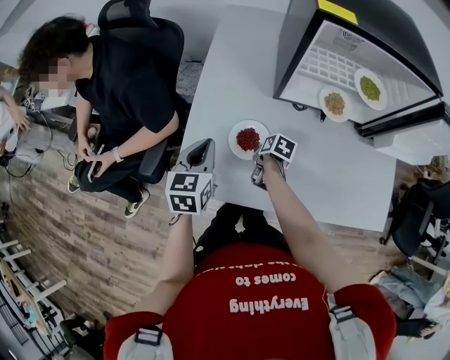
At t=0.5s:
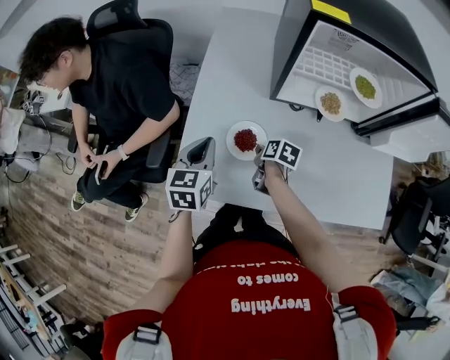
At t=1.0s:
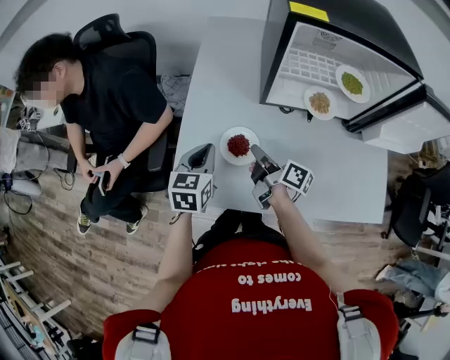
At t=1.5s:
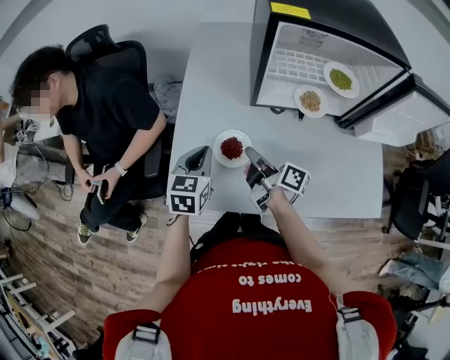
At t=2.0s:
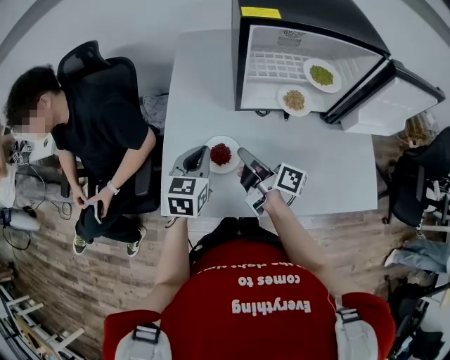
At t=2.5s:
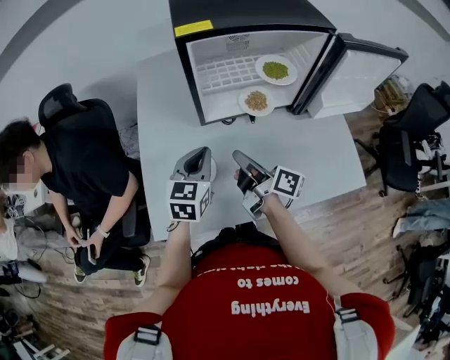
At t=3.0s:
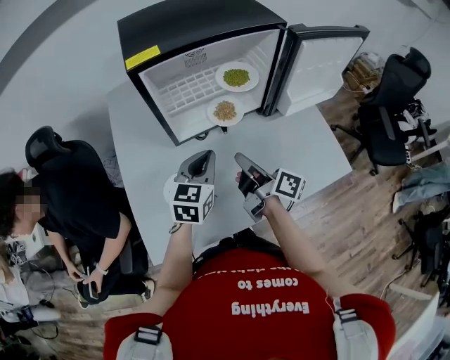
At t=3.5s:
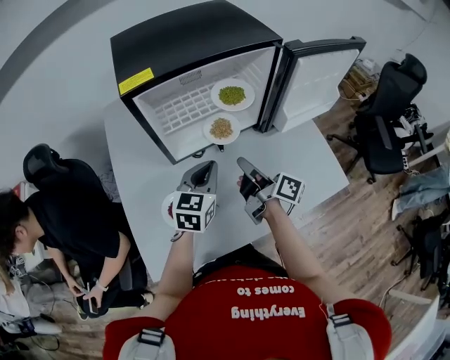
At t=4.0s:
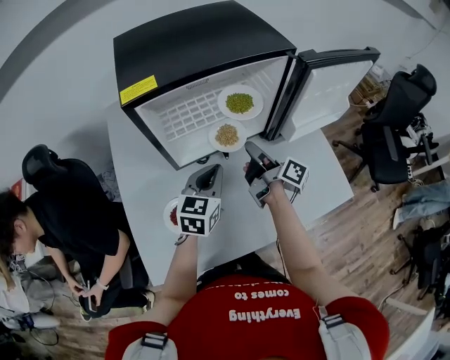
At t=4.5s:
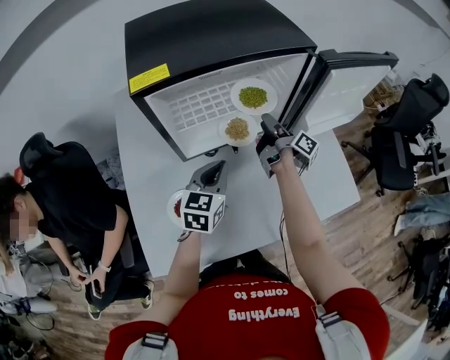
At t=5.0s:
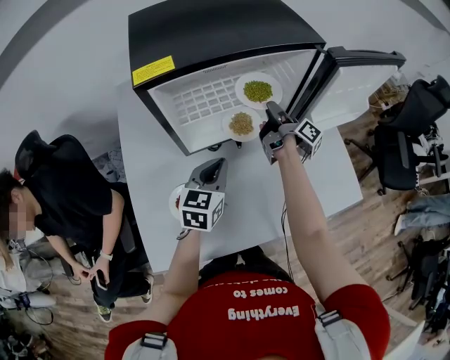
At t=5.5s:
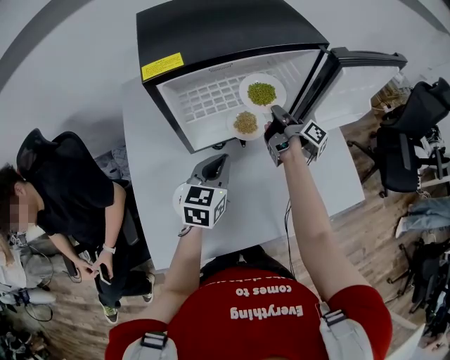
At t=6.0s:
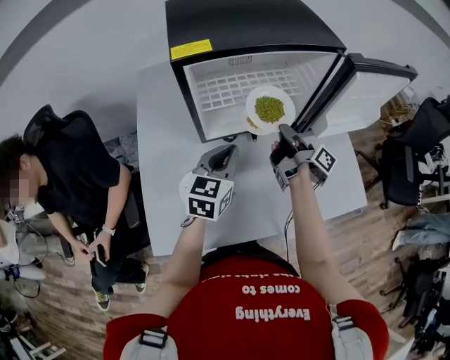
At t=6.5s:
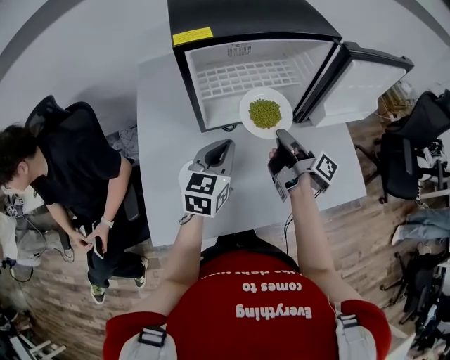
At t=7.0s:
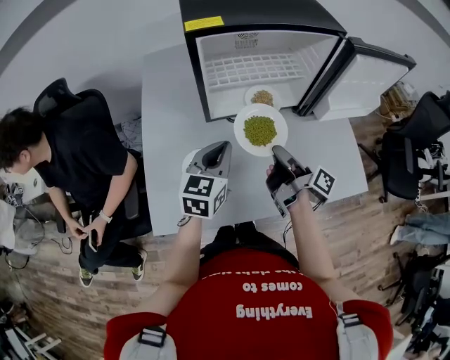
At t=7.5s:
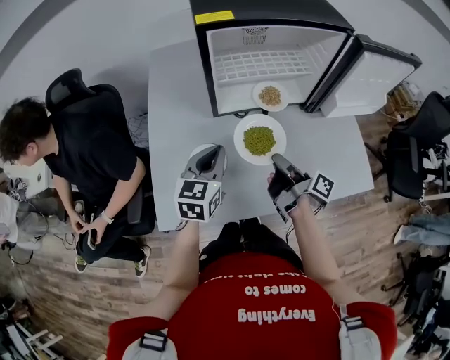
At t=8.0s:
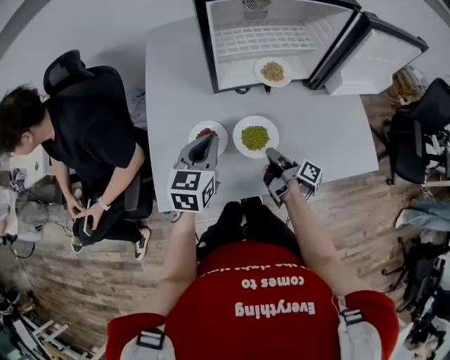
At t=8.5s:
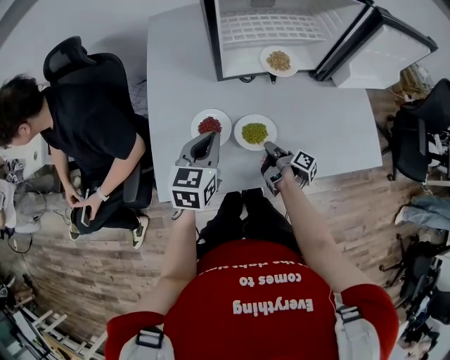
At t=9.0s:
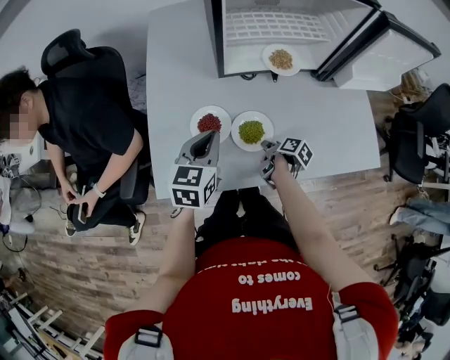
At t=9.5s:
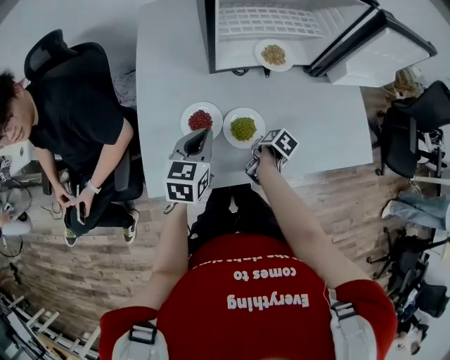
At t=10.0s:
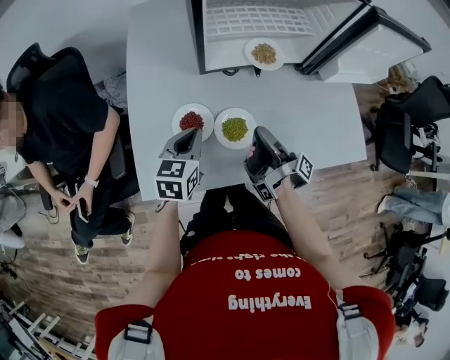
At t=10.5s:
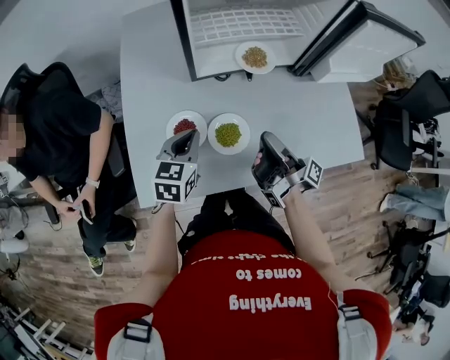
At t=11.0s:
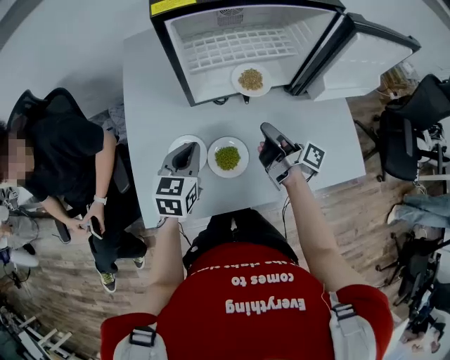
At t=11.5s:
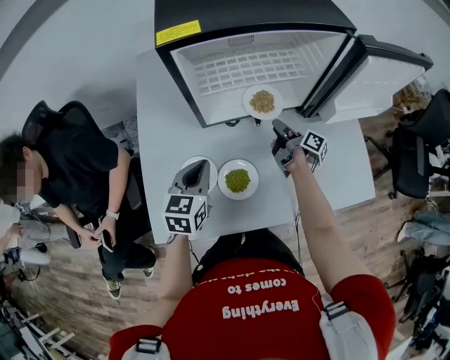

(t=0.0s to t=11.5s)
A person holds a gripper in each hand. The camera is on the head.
t=0.0s - t=2.0s: The left gripper changes place by roughly 10 cm.
t=2.0s - t=4.0s: The left gripper changes place by approximately 25 cm, and changes its angle by some 30 degrees.
t=4.0s - t=6.0s: The left gripper ends up about 5 cm from where it was.
t=6.0s - t=7.5s: The left gripper ends up about 10 cm from where it was.
t=7.5s - t=9.5s: The left gripper travels downward by approximately 10 cm.
t=9.5s - t=11.5s: The left gripper shifts by about 10 cm.

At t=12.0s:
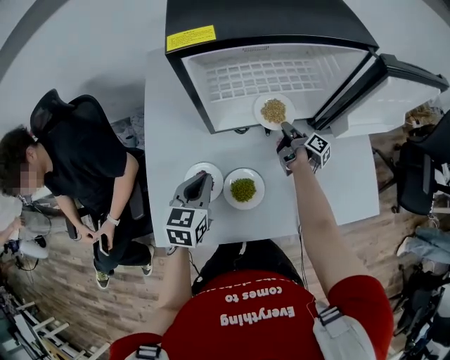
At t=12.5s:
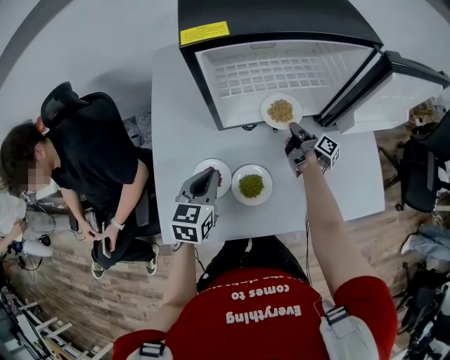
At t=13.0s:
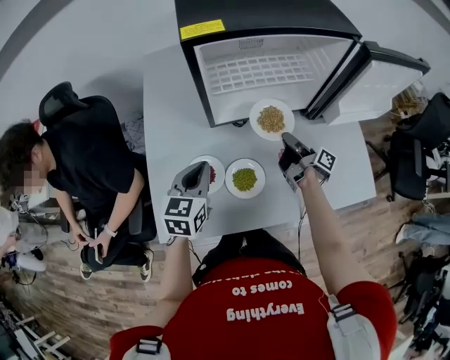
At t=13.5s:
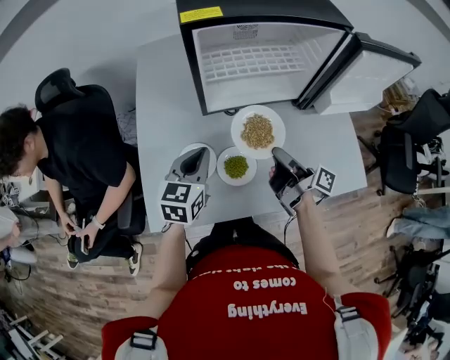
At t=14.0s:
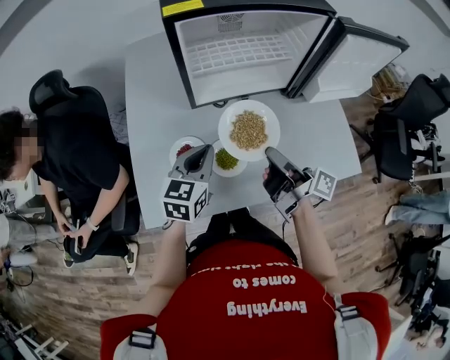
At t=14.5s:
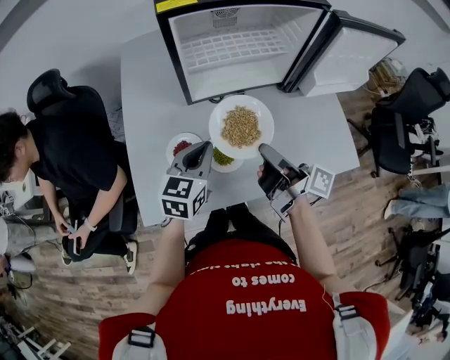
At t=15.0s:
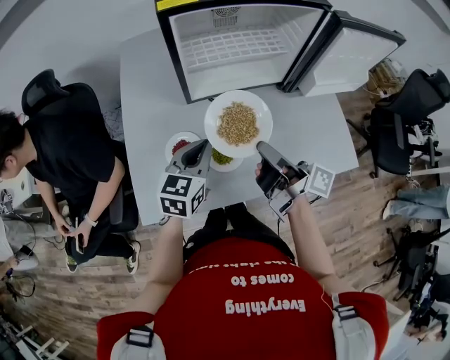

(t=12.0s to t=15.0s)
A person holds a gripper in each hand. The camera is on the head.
t=13.5s - t=15.0s: The left gripper ends up roughly 5 cm from where it was.

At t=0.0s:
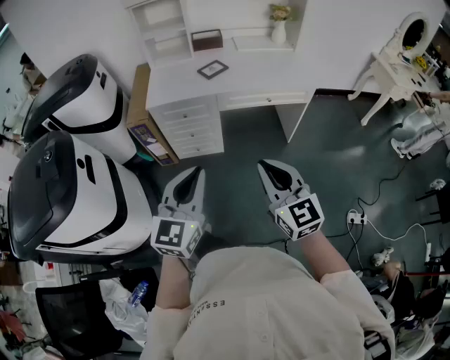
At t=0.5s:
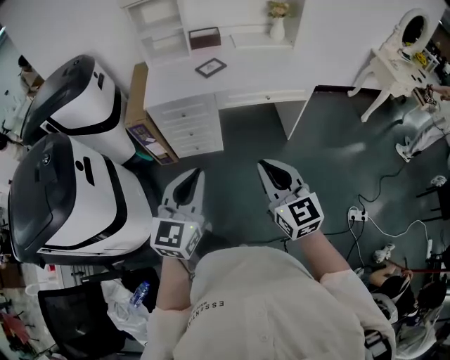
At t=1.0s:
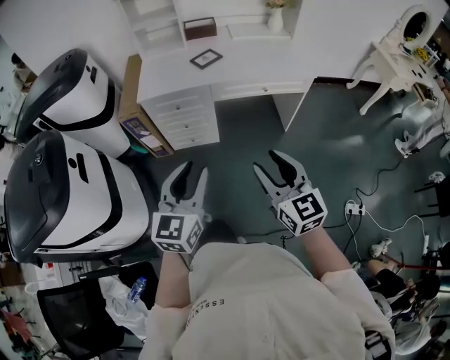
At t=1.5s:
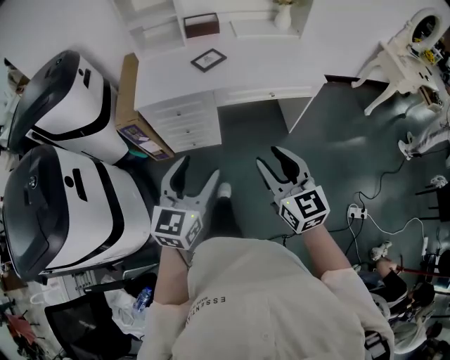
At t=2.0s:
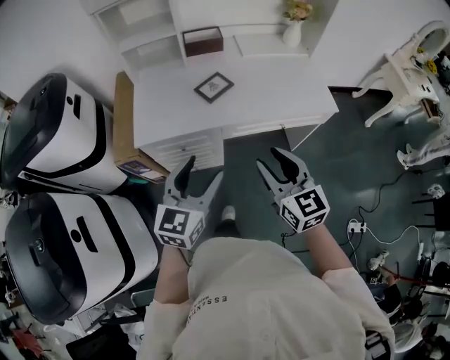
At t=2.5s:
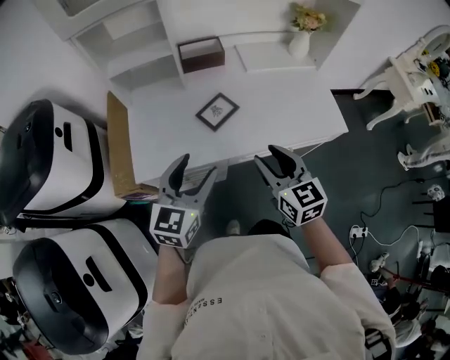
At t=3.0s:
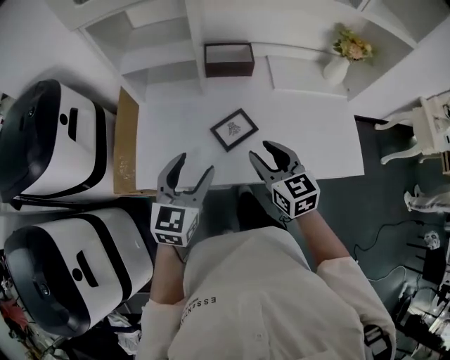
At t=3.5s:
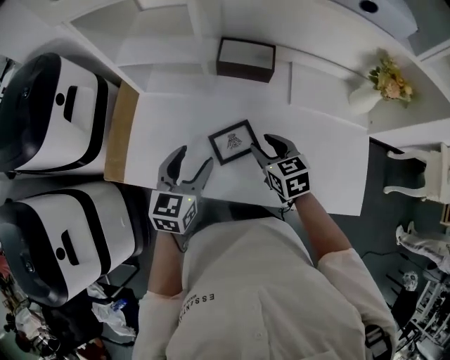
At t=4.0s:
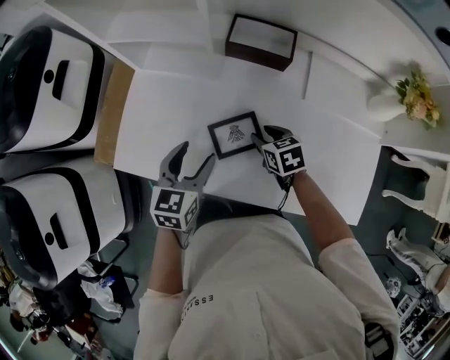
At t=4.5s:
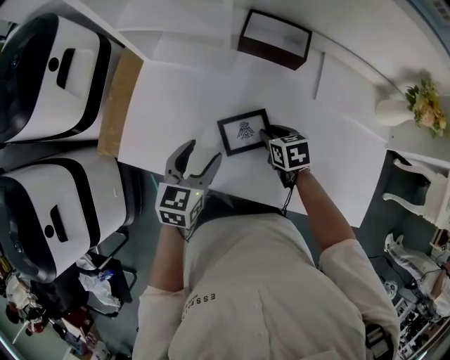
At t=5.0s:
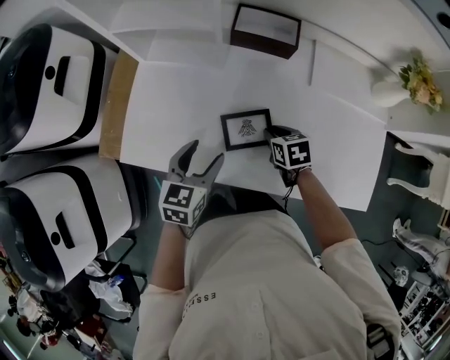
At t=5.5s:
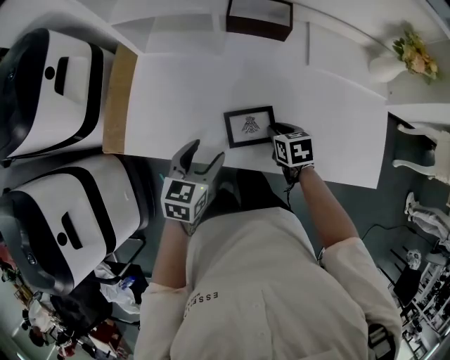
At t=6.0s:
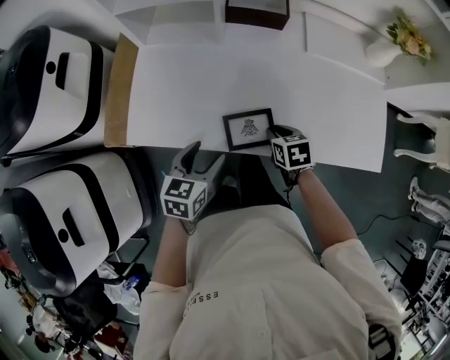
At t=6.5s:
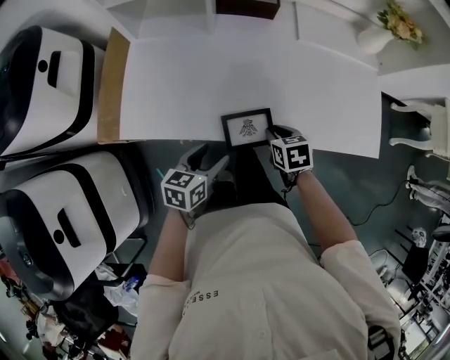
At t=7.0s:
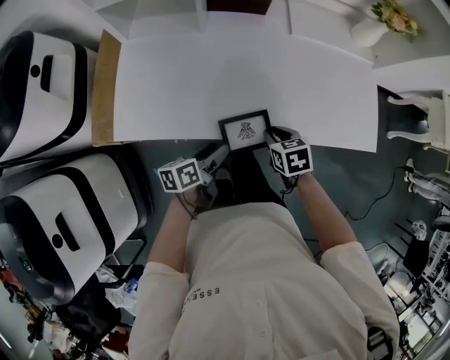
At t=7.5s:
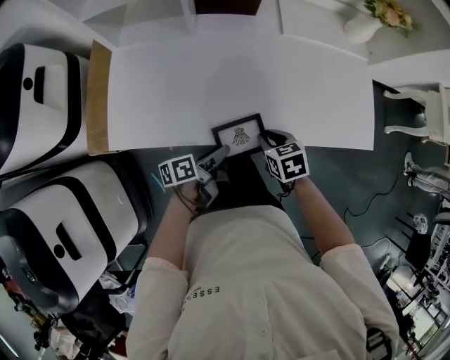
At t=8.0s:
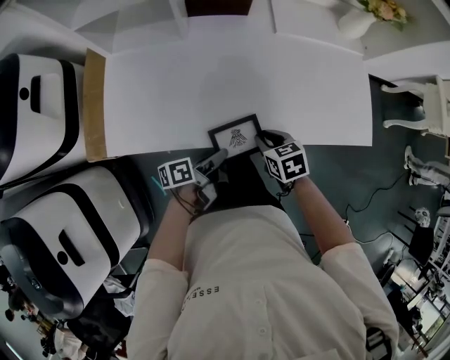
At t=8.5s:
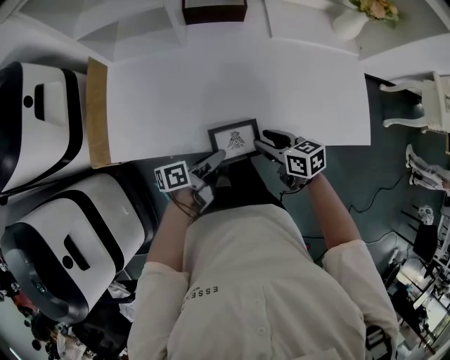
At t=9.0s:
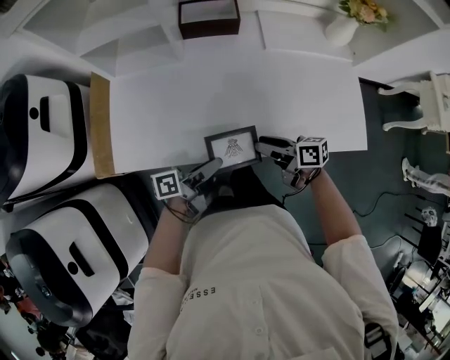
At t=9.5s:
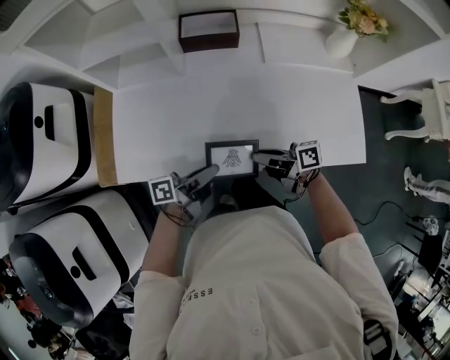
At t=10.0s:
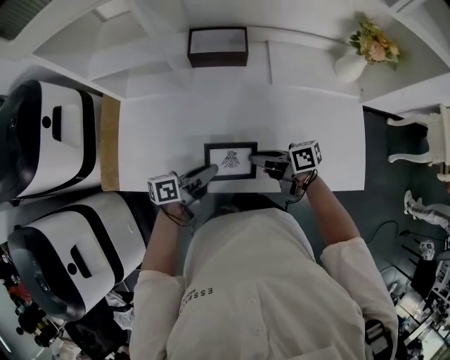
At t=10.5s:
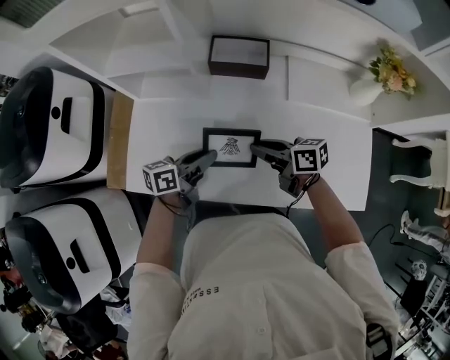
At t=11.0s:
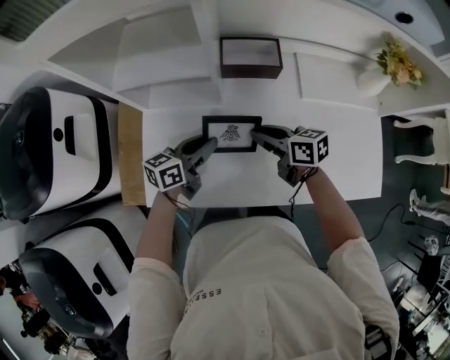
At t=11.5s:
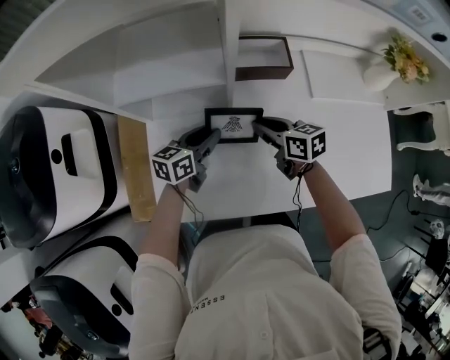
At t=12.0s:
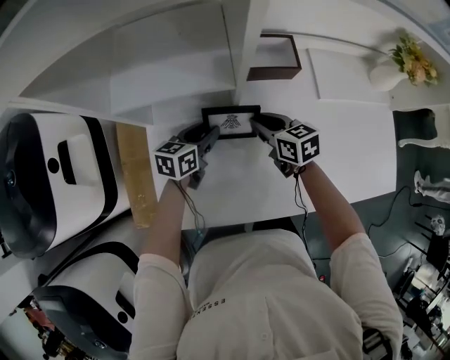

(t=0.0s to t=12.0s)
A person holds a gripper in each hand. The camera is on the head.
t=0.0s - t=2.0s: Both grippers move forward, about 30 cm. The right gripper opens its fingers. The left gripper opens up.
t=2.0s - t=4.0s: The right gripper moves about 50 cm, and angles its fingers downward, by roughly 40 degrees. Meanwhile the left gripper shifts by about 40 cm, and changes its angle by about 30 degrees.
t=4.0s - t=6.0s: Both grippers move backward, about 15 cm. The right gripper closes up.
t=6.0s - t=8.0s: The left gripper goes some 15 cm to the right and downward, rotates around the line of its fingers by approximately 50 degrees, counterclockwise from behind, and closes its fingers. Meanwhile the right gripper travels backward by about 5 cm.
t=8.0s - t=10.0s: The left gripper changes place by roughly 15 cm, while the right gripper changes place by some 10 cm, points its fingers about 40 degrees further upward, and opens, then closes again.
t=10.0s - t=12.0s: The left gripper changes place by approximately 30 cm, and changes its angle by roughly 40 degrees, while the right gripper shifts by roughly 25 cm, and swivels roughly 50 degrees.
